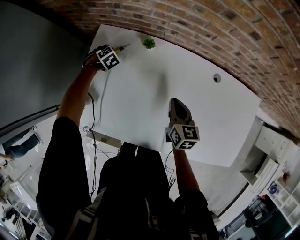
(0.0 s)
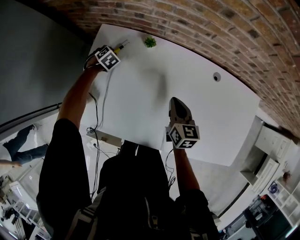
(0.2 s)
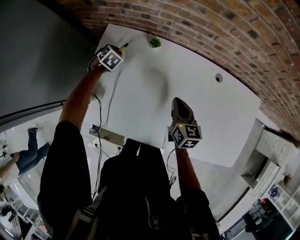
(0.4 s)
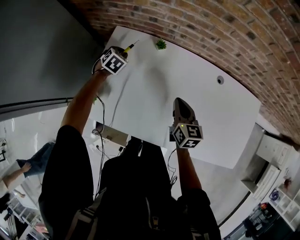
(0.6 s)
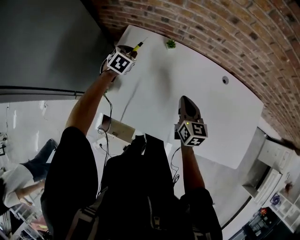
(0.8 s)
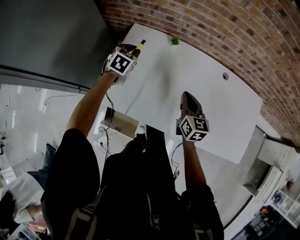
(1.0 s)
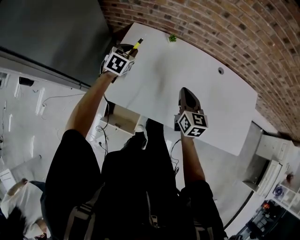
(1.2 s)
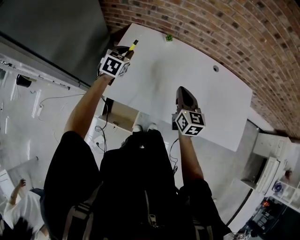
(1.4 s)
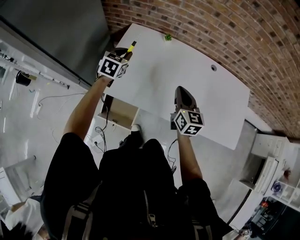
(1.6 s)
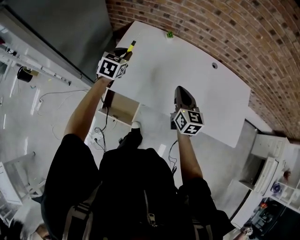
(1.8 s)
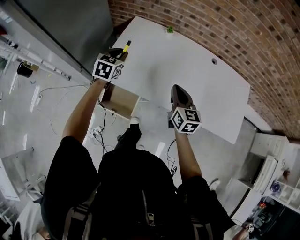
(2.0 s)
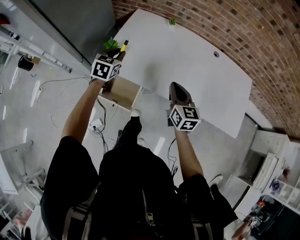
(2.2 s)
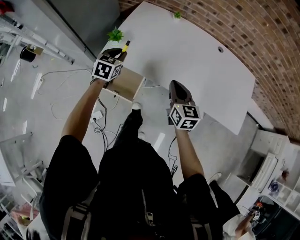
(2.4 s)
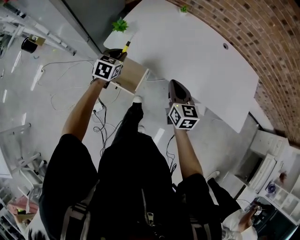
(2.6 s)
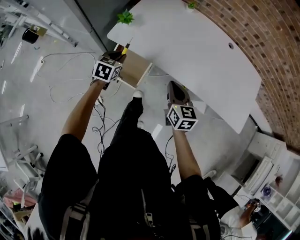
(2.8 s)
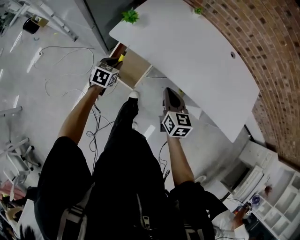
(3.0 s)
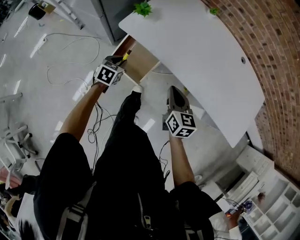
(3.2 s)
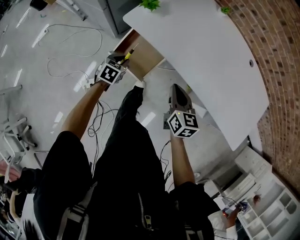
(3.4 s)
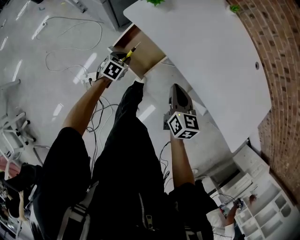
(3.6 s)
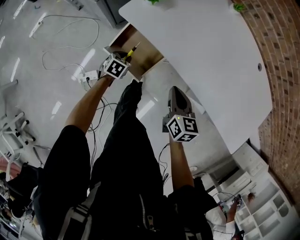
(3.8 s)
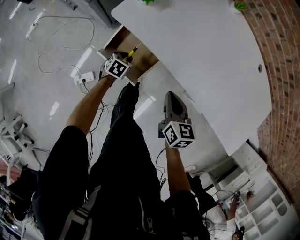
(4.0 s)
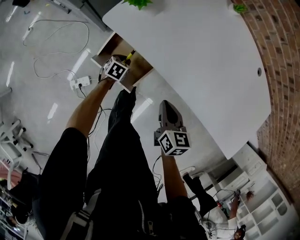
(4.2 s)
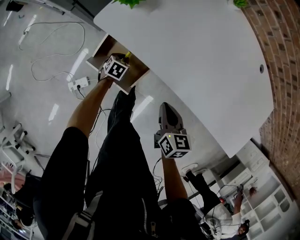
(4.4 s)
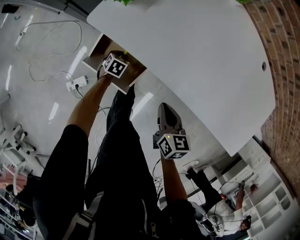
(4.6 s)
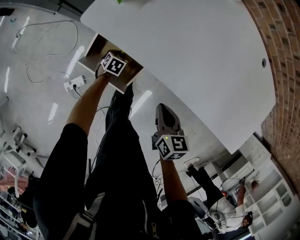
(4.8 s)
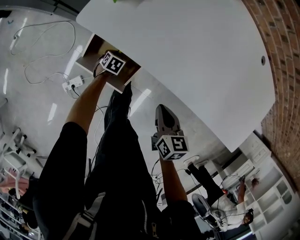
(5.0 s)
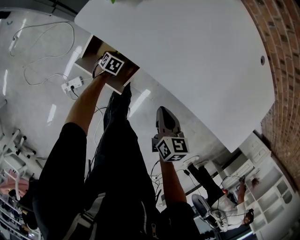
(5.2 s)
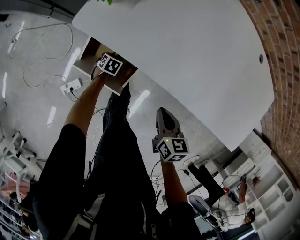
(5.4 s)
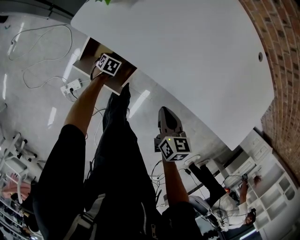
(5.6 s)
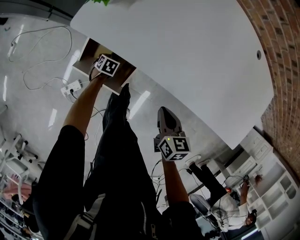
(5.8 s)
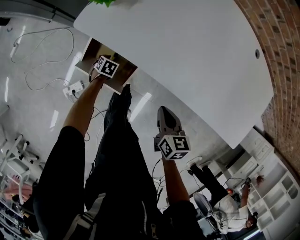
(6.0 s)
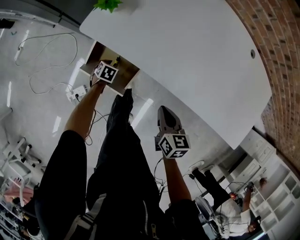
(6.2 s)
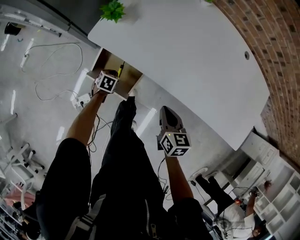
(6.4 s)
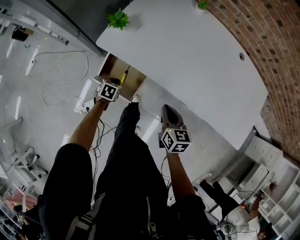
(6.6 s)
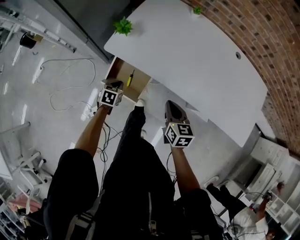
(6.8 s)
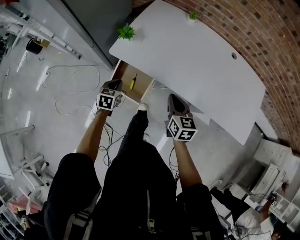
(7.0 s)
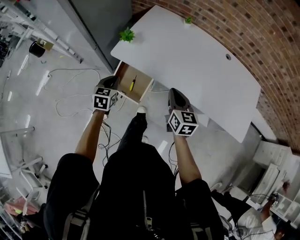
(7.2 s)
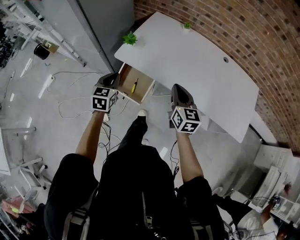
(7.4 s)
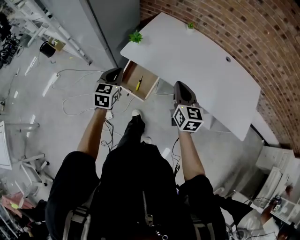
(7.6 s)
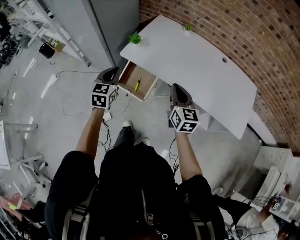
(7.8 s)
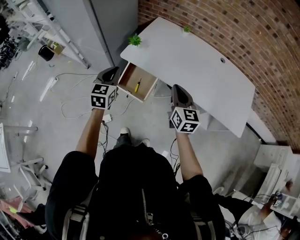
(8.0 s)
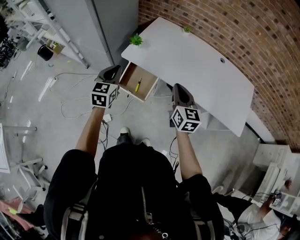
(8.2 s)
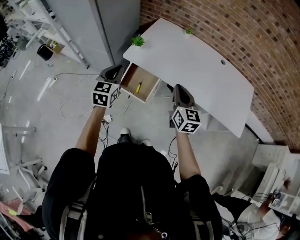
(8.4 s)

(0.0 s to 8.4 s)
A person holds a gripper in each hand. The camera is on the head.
0.0 s - 1.4 s: The right gripper heads backward, upward and to the left, covering some 20 cm, while the left gripper goes approximately 35 cm upward and backward, and angles its fingers upward, by about 40 degrees.
1.4 s - 2.8 s: Both grippers move backward, approximately 25 cm.
2.8 s - 4.2 s: The right gripper is displaced downward by some 15 cm. The left gripper goes approximately 30 cm downward, and swivels roughly 20 degrees.
4.2 s - 5.6 s: The left gripper heads downward, covering approximately 10 cm; the right gripper is displaced to the right by some 5 cm.
5.6 s - 7.0 s: The right gripper travels upward by about 20 cm, and rotates approximately 20 degrees; the left gripper moves upward, approximately 35 cm, and swivels roughly 30 degrees.
7.0 s - 8.4 s: The right gripper heads upward and backward, covering approximately 20 cm. Meanwhile the left gripper shifts some 25 cm upward, and changes its angle by approximately 30 degrees.

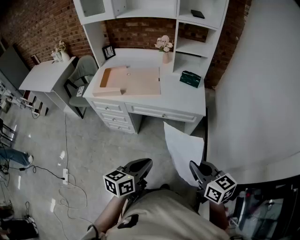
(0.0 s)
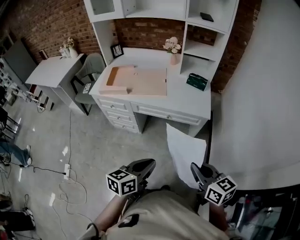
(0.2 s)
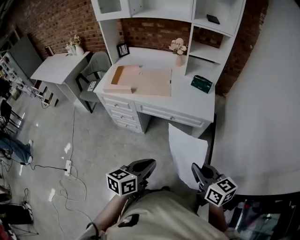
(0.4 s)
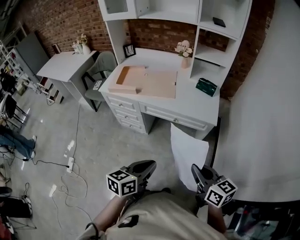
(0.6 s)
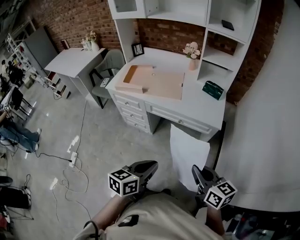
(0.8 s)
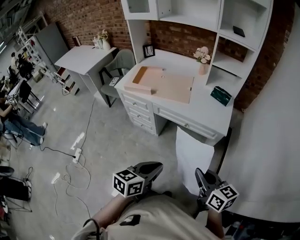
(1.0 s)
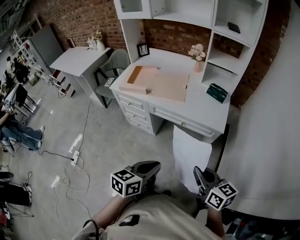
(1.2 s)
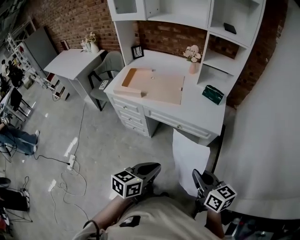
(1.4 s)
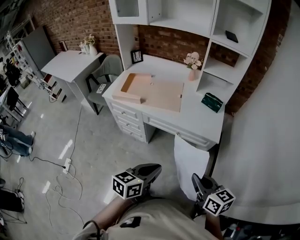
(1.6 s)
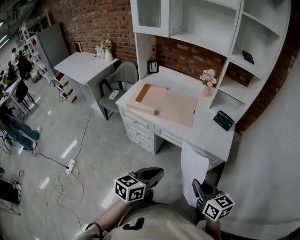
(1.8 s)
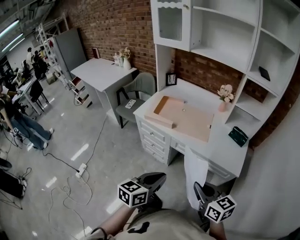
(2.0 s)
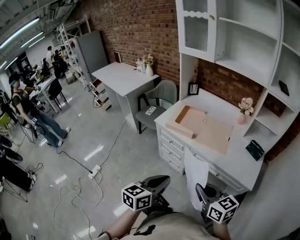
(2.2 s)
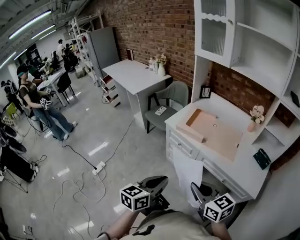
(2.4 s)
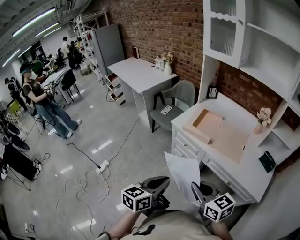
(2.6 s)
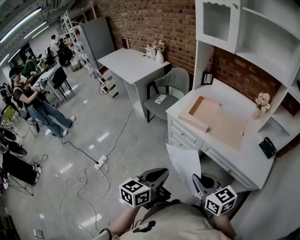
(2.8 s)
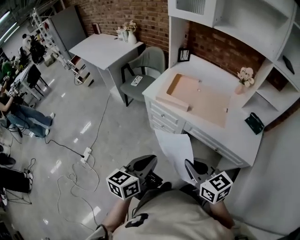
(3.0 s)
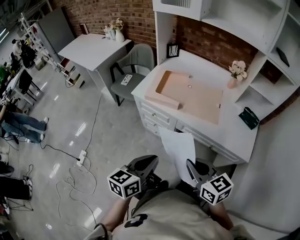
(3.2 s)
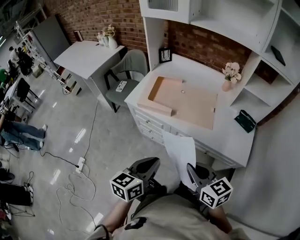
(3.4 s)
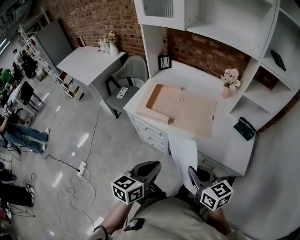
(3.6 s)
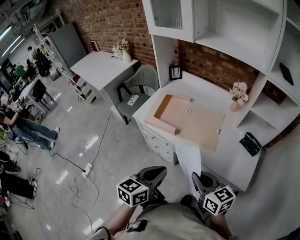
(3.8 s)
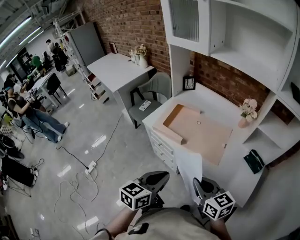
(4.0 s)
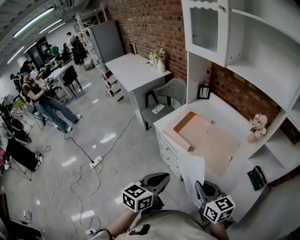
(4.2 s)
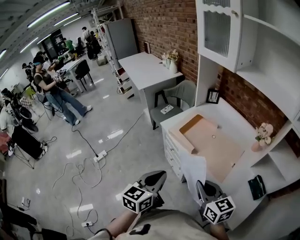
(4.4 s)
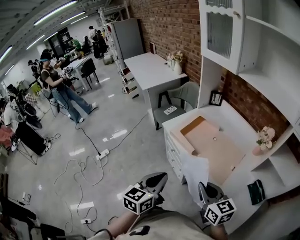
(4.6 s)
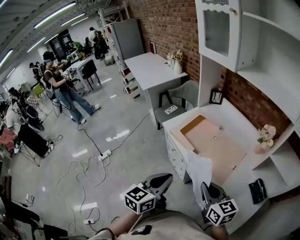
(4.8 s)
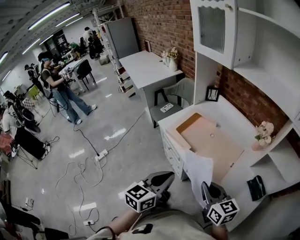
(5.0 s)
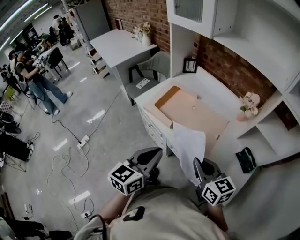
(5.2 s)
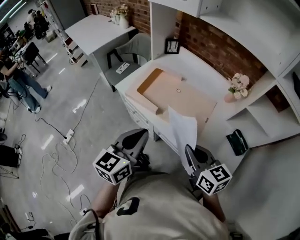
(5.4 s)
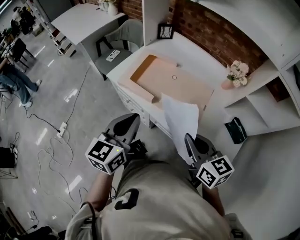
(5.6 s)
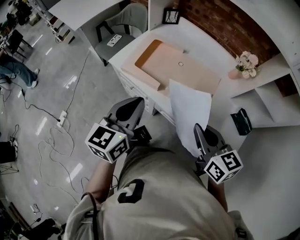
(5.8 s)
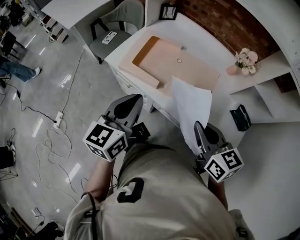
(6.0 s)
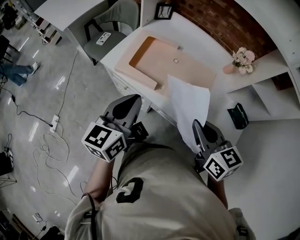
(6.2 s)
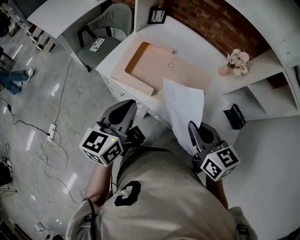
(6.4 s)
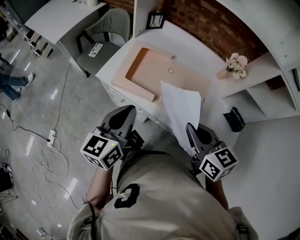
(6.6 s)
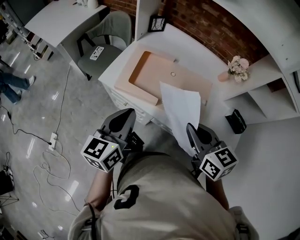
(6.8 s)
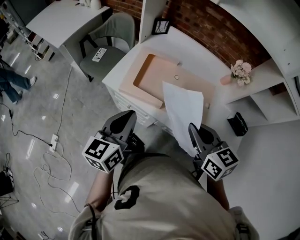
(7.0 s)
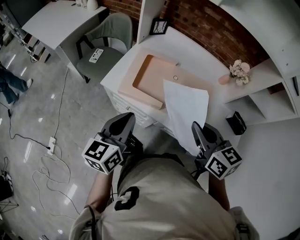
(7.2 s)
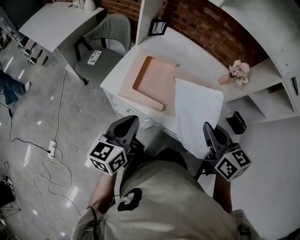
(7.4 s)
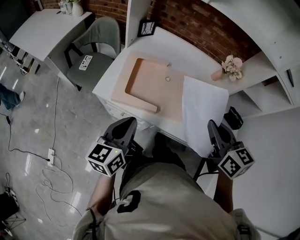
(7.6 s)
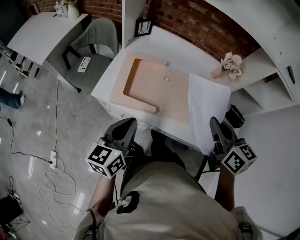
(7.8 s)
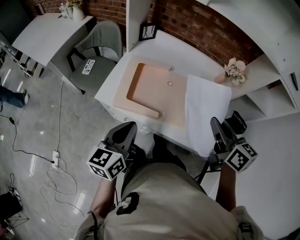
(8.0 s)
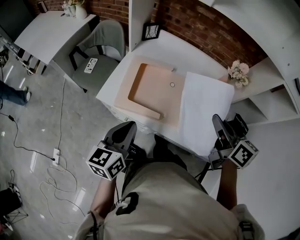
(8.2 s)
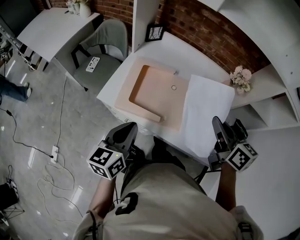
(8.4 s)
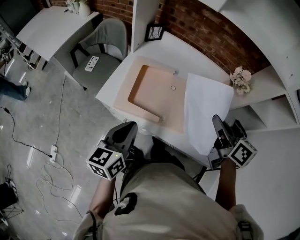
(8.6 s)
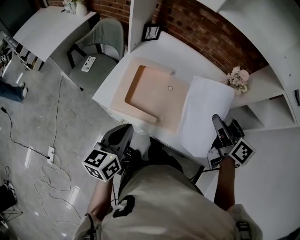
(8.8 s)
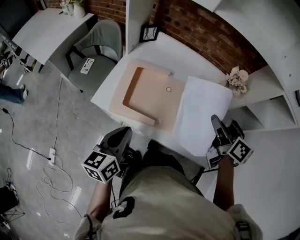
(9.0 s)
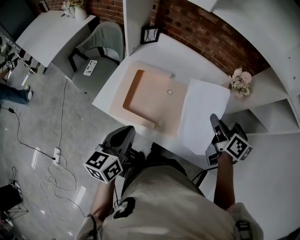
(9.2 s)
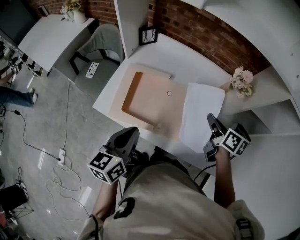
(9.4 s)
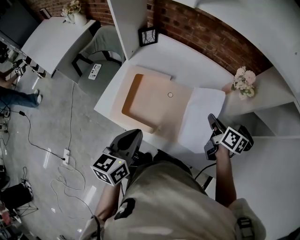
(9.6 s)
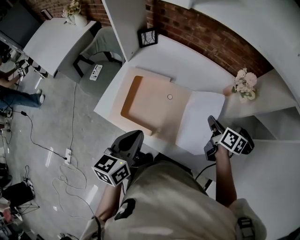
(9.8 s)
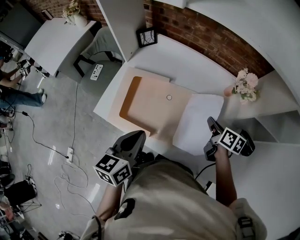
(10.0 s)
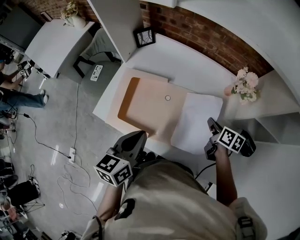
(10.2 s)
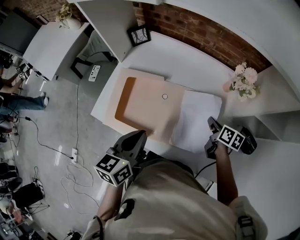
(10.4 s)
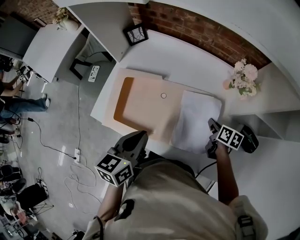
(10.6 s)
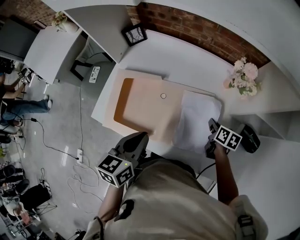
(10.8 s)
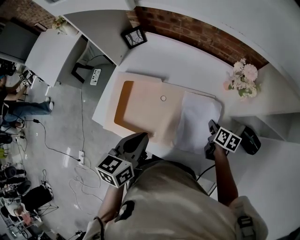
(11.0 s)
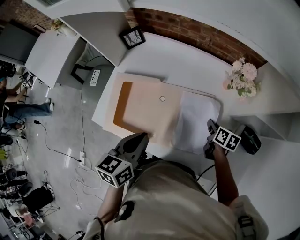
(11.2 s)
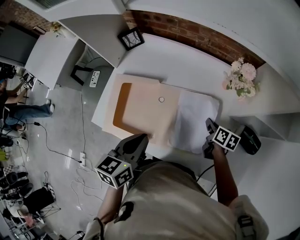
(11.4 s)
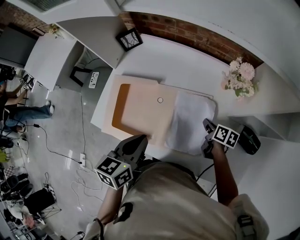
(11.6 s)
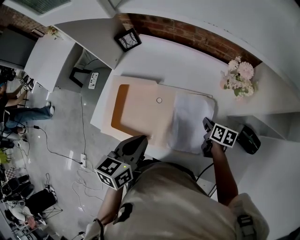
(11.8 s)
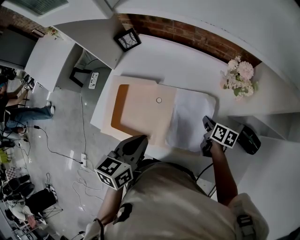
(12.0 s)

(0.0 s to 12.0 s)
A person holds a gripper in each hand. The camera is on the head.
0.0 s - 1.6 s: Both grippers move forward, approximately 5 cm.
1.6 s - 3.0 s: The left gripper moves about 30 cm, and swivels approximately 30 degrees. Meanwhile the right gripper changes place by approximately 30 cm, and swivels roughly 30 degrees.
3.0 s - 4.4 s: The left gripper changes place by about 15 cm, and turns by some 30 degrees; the right gripper moves some 20 cm.
4.4 s - 6.0 s: The left gripper travels forward by some 15 cm. Meanwhile the right gripper is displaced to the right and forward by approximately 5 cm, and swivels roughly 20 degrees.
6.0 s - 7.6 s: The left gripper moves to the left, forward and downward, about 10 cm, while the right gripper heads forward, covering some 5 cm, and goes to the left and returns, roughly 10 cm each way.
7.6 s - 9.0 s: The right gripper shifts about 10 cm forward, and swivels roughly 30 degrees.
9.0 s - 10.4 s: The right gripper is displaced downward and to the right by about 25 cm, and rotates approximately 20 degrees; the left gripper shifts approximately 15 cm to the right and forward.
10.4 s - 12.0 s: The right gripper travels downward by about 5 cm.

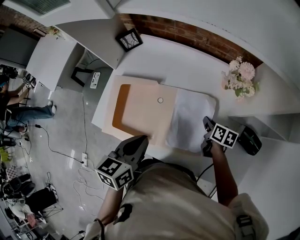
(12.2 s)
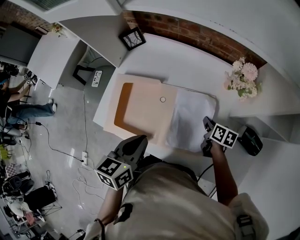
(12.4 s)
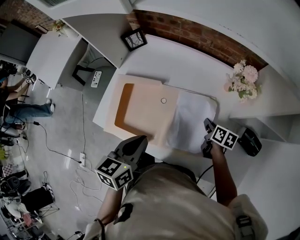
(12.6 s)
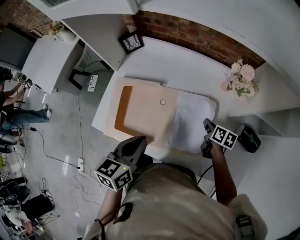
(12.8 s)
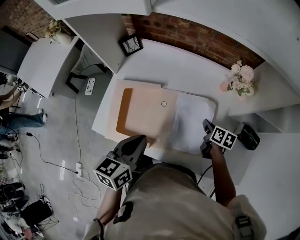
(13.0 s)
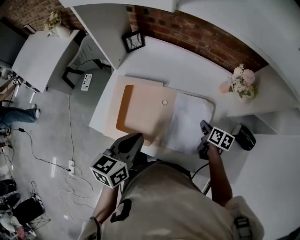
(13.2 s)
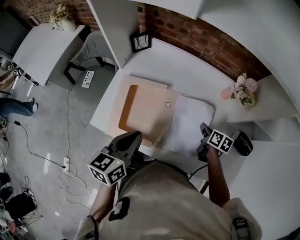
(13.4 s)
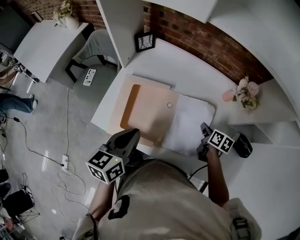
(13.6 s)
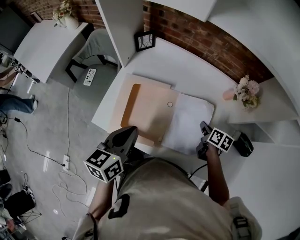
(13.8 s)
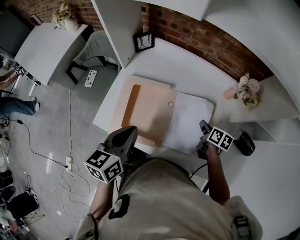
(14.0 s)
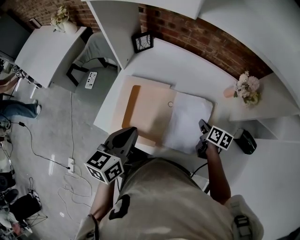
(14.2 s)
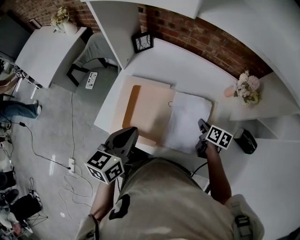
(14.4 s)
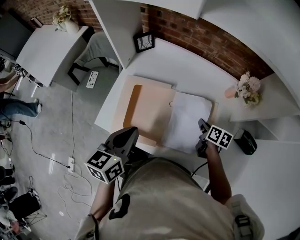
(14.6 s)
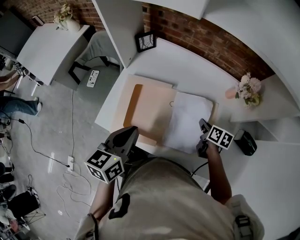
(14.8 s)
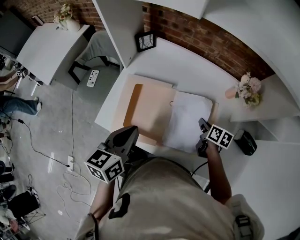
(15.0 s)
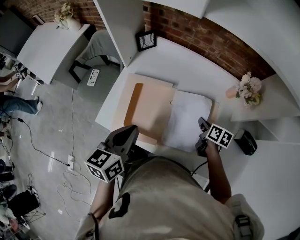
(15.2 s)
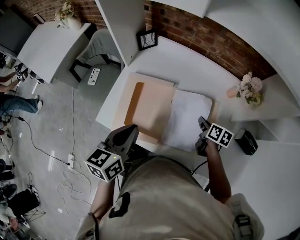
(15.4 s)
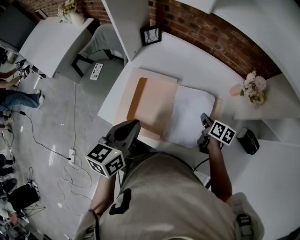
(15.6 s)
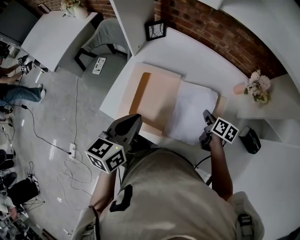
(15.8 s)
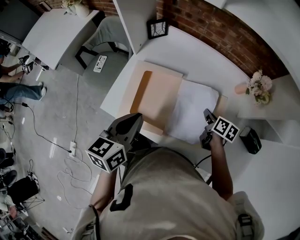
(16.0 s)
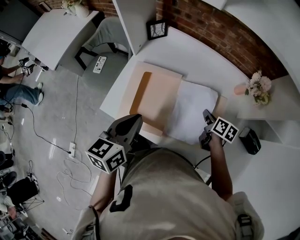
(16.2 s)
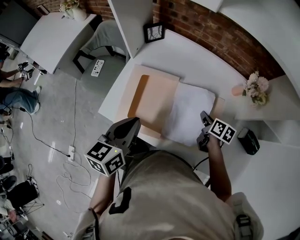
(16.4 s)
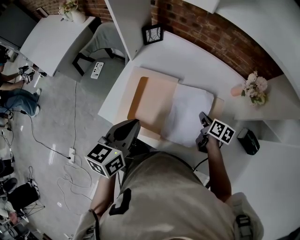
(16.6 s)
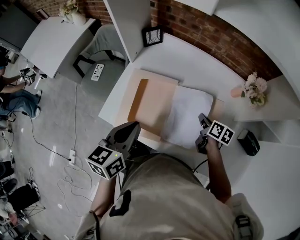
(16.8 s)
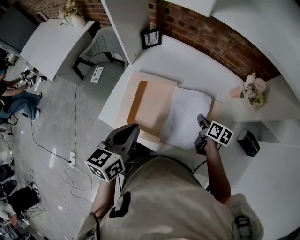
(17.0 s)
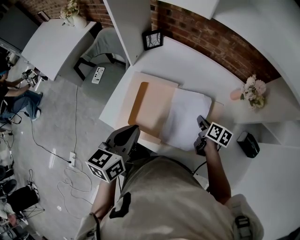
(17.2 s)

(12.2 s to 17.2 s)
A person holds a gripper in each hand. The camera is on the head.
12.2 s - 13.8 s: The right gripper moves to the left, roughly 5 cm. The left gripper is displaced to the left by some 15 cm.
13.8 s - 17.2 s: The grippers make only small movements.
